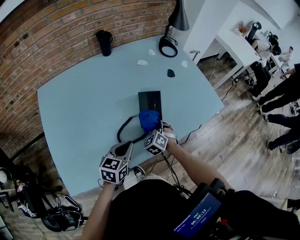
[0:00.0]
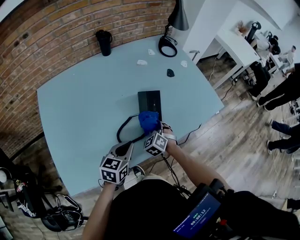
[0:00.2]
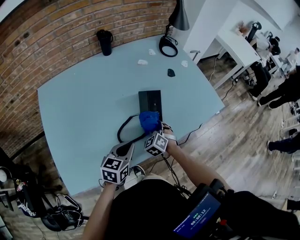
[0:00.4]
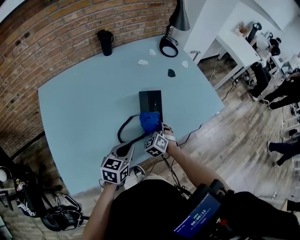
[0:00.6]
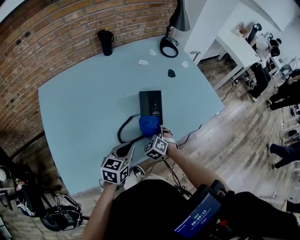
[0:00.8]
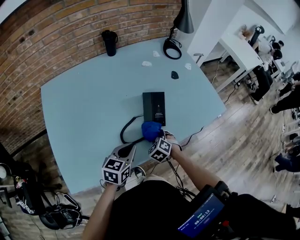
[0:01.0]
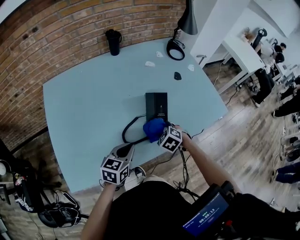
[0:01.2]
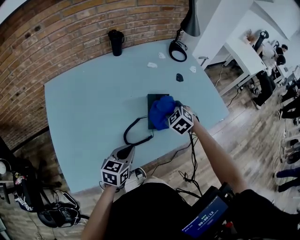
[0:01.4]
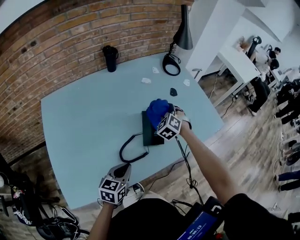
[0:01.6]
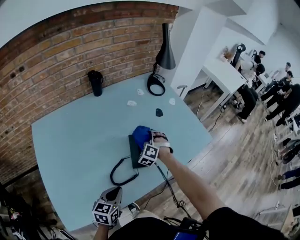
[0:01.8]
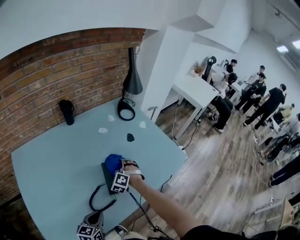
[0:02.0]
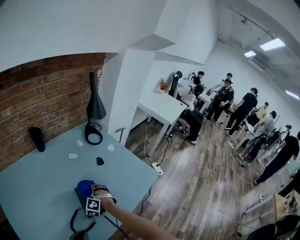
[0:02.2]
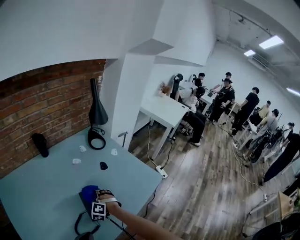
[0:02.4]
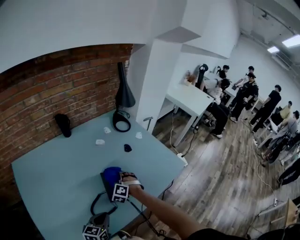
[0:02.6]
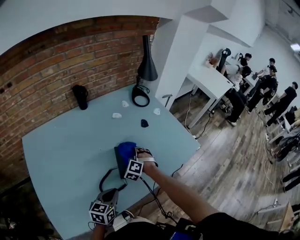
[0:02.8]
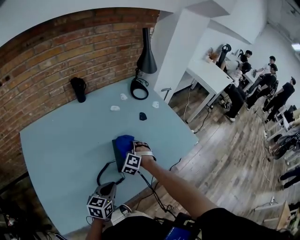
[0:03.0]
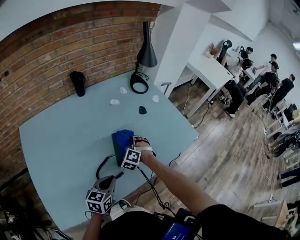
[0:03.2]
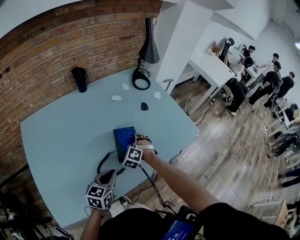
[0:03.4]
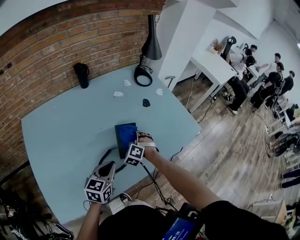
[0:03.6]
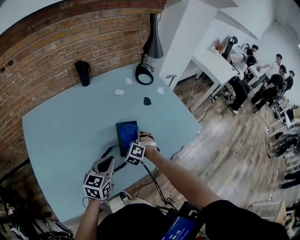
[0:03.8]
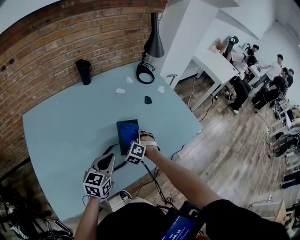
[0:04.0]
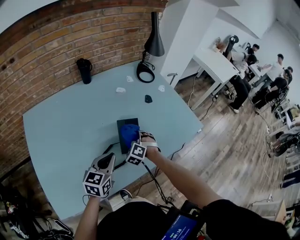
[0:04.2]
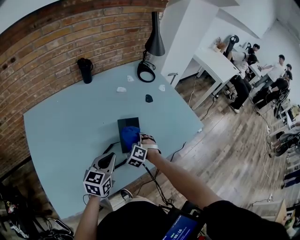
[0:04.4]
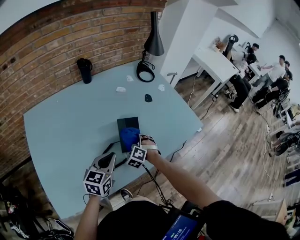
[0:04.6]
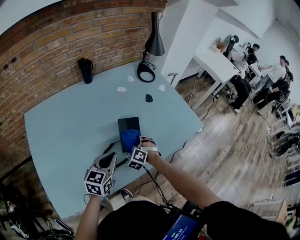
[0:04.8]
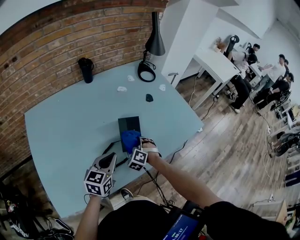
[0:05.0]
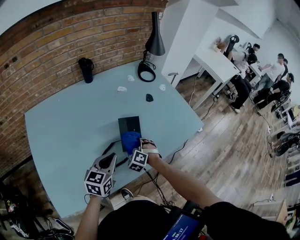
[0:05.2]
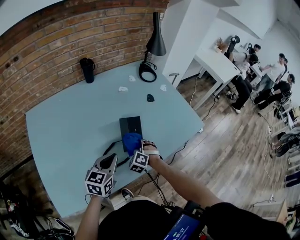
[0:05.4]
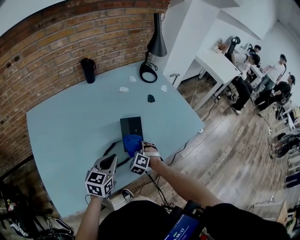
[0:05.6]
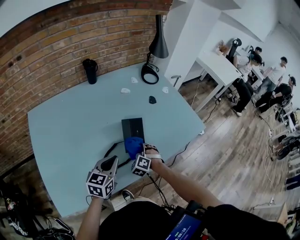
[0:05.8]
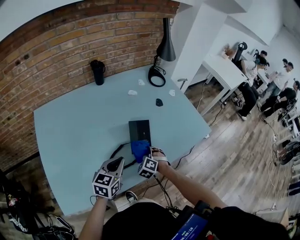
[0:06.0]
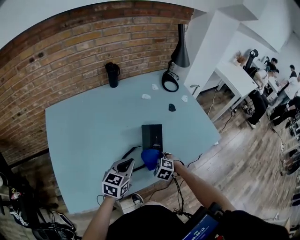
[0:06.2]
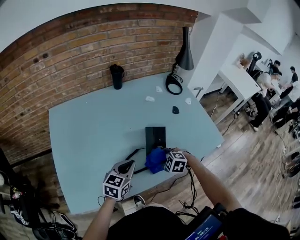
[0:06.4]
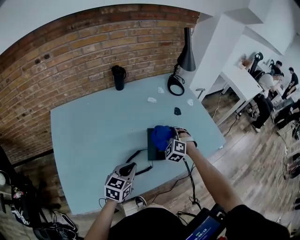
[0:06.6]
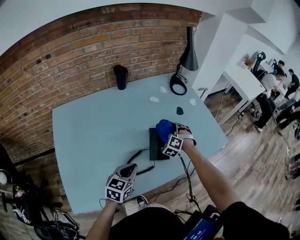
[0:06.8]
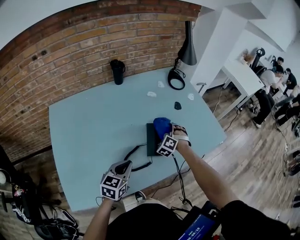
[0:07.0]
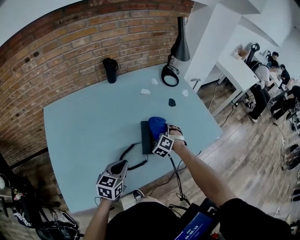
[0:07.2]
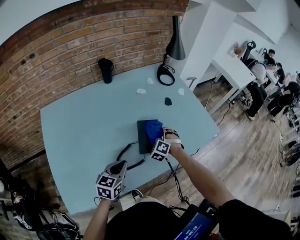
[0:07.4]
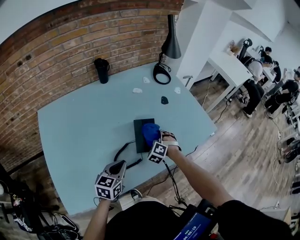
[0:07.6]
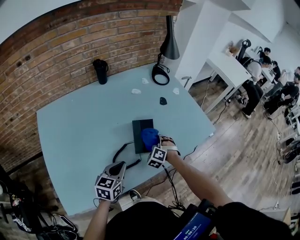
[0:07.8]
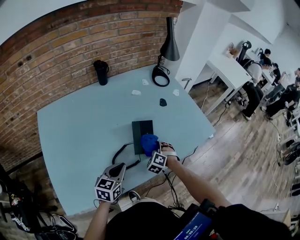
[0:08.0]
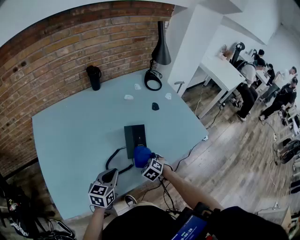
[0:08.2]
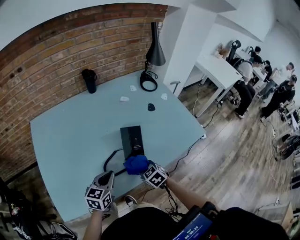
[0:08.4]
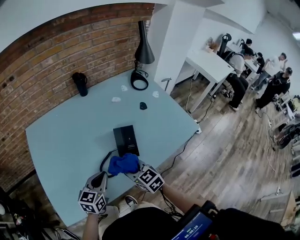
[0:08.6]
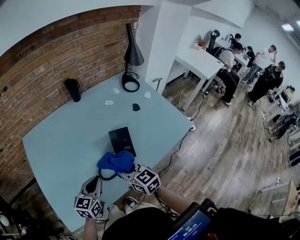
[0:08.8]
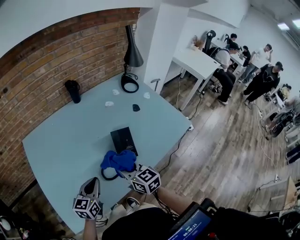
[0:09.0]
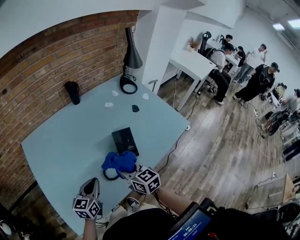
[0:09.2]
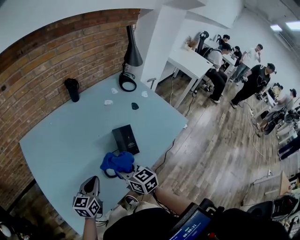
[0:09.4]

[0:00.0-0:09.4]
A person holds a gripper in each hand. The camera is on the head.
0:00.0 to 0:01.6: The right gripper travels forward and upward by roughly 15 cm.
0:01.6 to 0:03.2: The left gripper moves forward, roughly 5 cm; the right gripper moves downward, about 5 cm.
0:03.2 to 0:04.8: The left gripper goes about 5 cm upward. Meanwhile the right gripper shifts about 5 cm backward.
0:04.8 to 0:06.2: The right gripper shifts about 10 cm backward, and swivels about 30 degrees.
0:06.2 to 0:07.8: The right gripper travels upward and back again, some 10 cm each way, and turns by approximately 30 degrees.
0:07.8 to 0:09.4: The left gripper changes place by about 10 cm, while the right gripper moves about 25 cm, and rolls clockwise, seen from behind, by roughly 70 degrees.

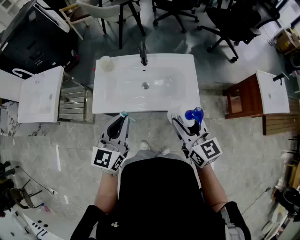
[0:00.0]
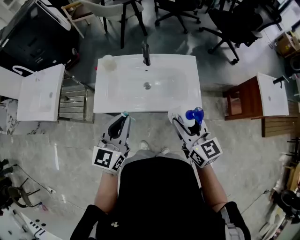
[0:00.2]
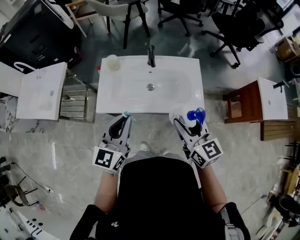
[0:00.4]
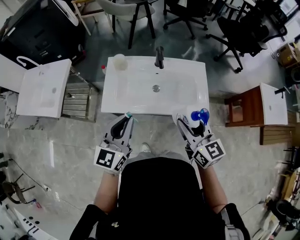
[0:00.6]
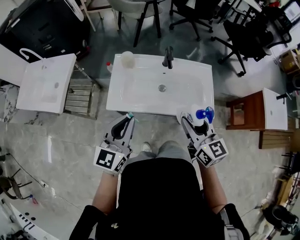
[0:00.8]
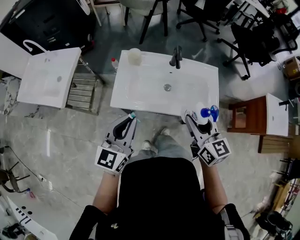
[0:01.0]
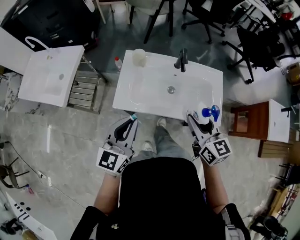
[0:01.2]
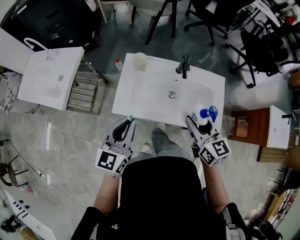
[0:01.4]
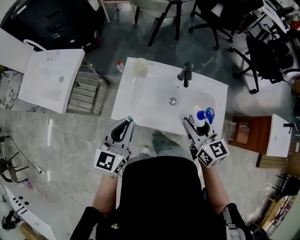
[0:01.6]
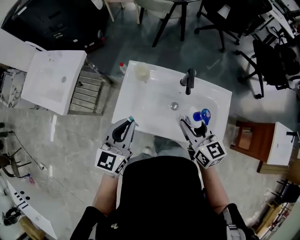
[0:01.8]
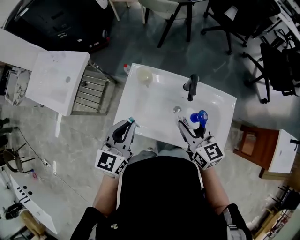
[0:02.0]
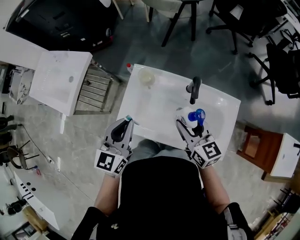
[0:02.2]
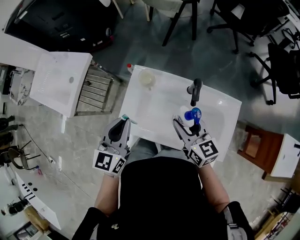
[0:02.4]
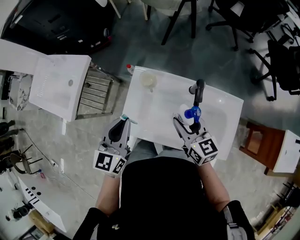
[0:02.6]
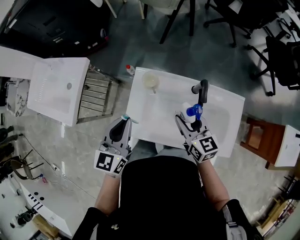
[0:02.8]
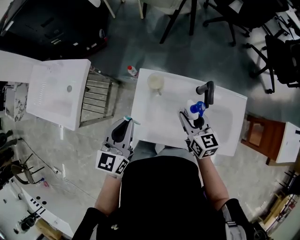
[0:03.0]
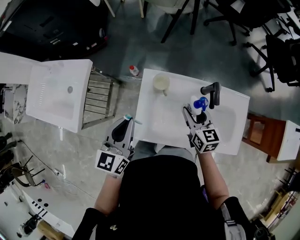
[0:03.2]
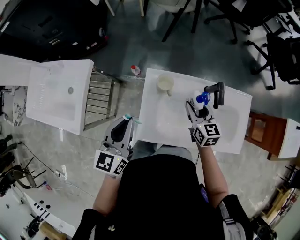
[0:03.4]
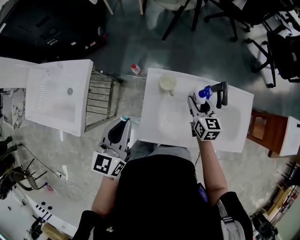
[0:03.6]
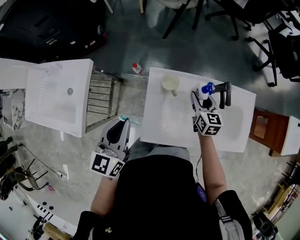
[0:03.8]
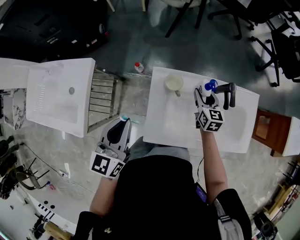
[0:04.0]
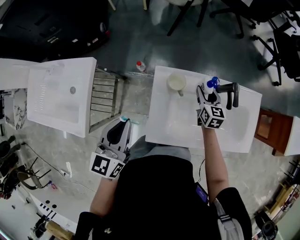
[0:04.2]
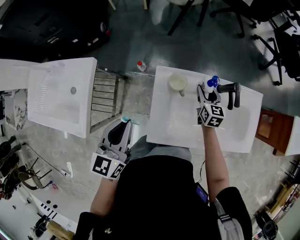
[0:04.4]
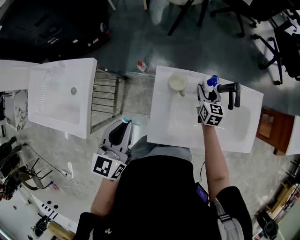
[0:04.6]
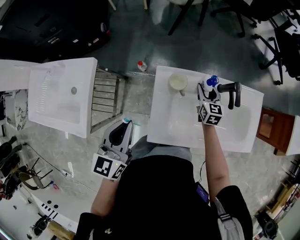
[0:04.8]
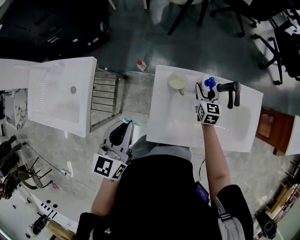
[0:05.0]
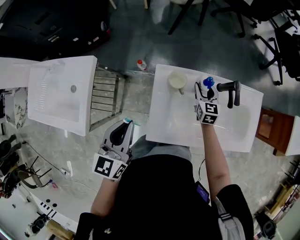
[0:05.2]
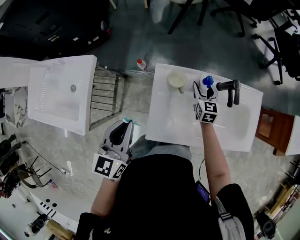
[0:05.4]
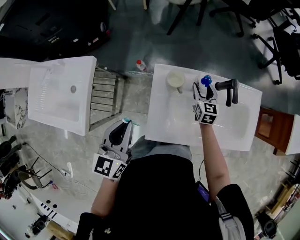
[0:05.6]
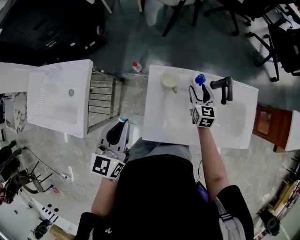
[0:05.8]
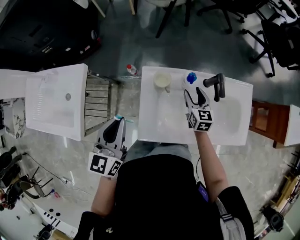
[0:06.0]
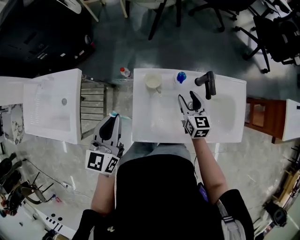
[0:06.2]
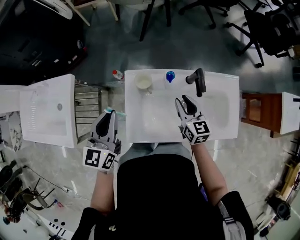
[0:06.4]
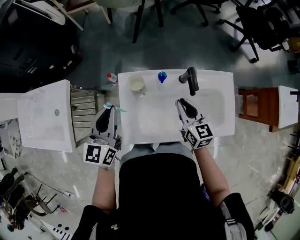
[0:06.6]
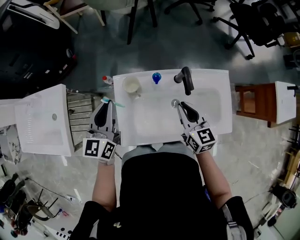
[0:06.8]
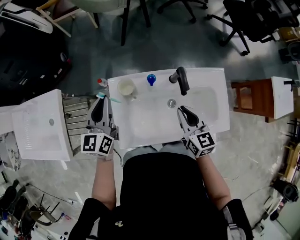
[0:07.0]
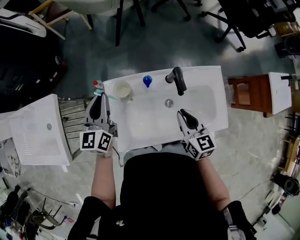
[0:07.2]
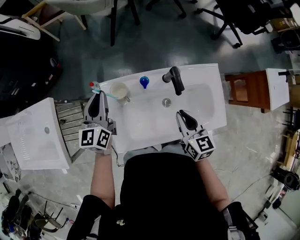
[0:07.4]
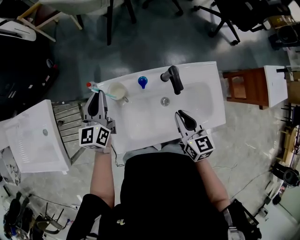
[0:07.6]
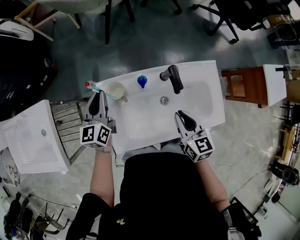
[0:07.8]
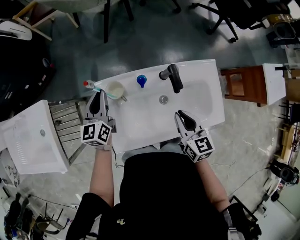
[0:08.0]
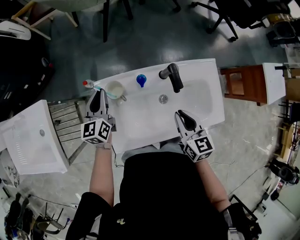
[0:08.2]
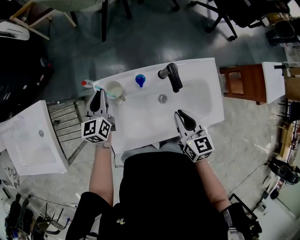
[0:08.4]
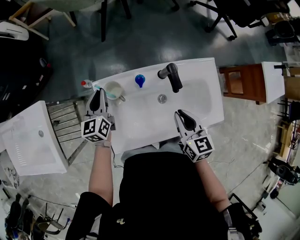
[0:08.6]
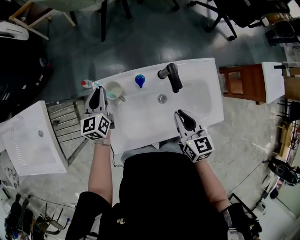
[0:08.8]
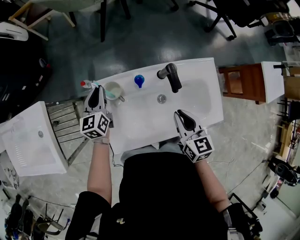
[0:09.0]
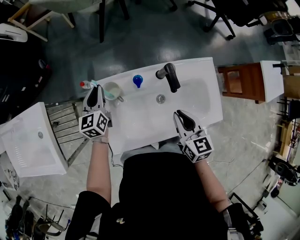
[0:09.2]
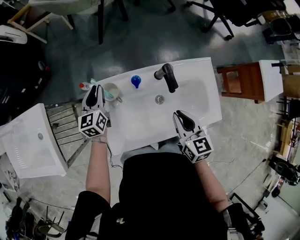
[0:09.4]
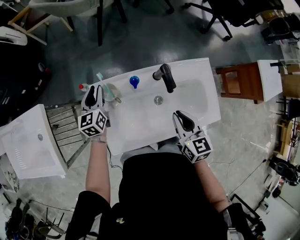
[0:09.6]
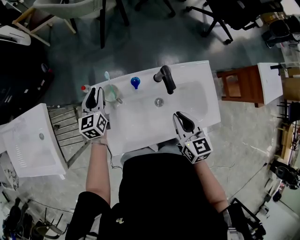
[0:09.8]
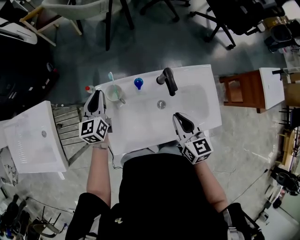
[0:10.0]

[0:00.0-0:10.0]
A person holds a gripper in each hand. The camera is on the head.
0:00.0 to 0:01.4: The left gripper travels to the left by roughly 15 cm. The right gripper moves forward and to the left, about 15 cm.
0:01.4 to 0:02.8: The left gripper is displaced forward by approximately 15 cm; the right gripper shifts approximately 20 cm forward and downward.
0:02.8 to 0:04.2: The right gripper goes about 20 cm downward and forward, and rotates approximately 30 degrees. Meanwhile the left gripper is displaced to the left by approximately 15 cm.
0:04.2 to 0:05.8: There are only small adjustments of the grippers.
0:05.8 to 0:07.2: The right gripper shifts approximately 20 cm upward, backward and to the right, and closes its fingers. Meanwhile the left gripper is displaced forward and to the right by roughly 20 cm.
0:07.2 to 0:08.6: The left gripper is displaced downward by approximately 10 cm.
0:08.6 to 0:10.0: There are only small adjustments of the grippers.

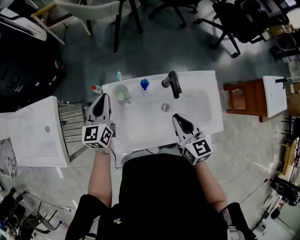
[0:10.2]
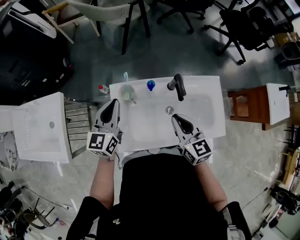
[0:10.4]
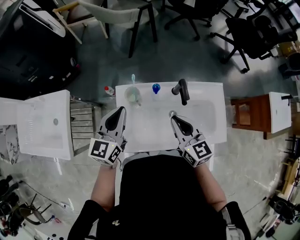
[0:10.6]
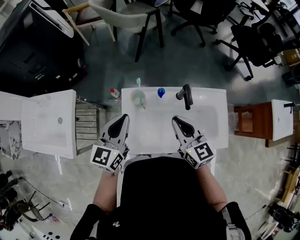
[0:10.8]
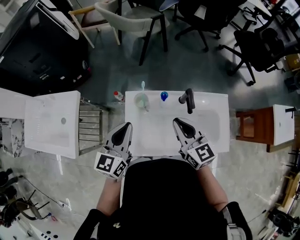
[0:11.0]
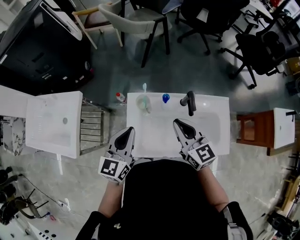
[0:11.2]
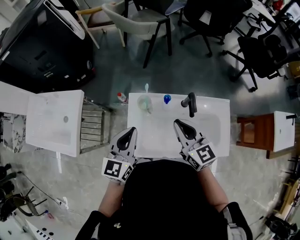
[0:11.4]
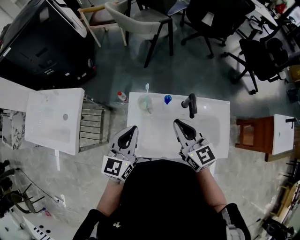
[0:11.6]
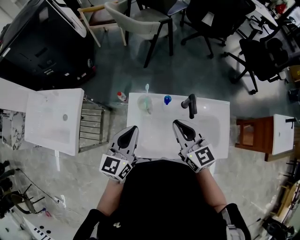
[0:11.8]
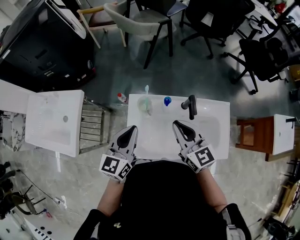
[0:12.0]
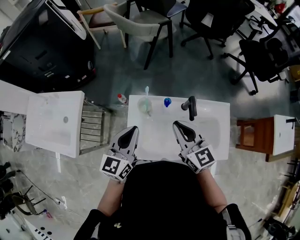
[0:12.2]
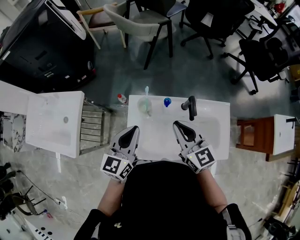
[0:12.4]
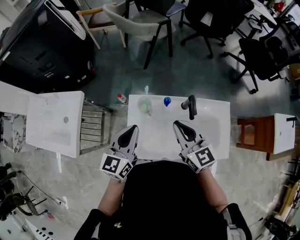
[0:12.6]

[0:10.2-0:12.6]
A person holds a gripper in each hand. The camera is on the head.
0:10.2 to 0:11.4: The left gripper moves backward and upward, some 15 cm. The right gripper is displaced upward and to the left by roughly 10 cm, and rotates about 20 degrees.
0:11.4 to 0:12.6: The grippers stay close to where they were, moving slightly.

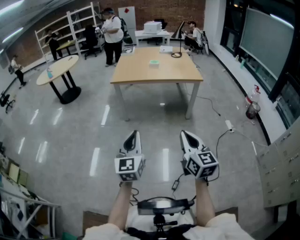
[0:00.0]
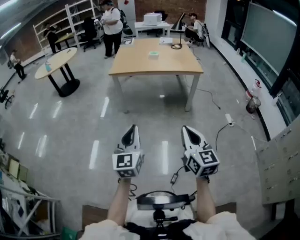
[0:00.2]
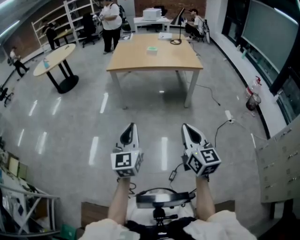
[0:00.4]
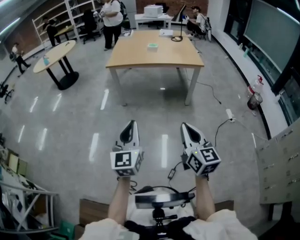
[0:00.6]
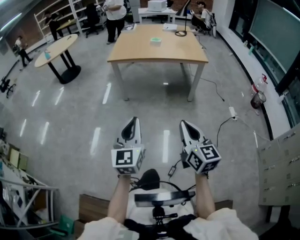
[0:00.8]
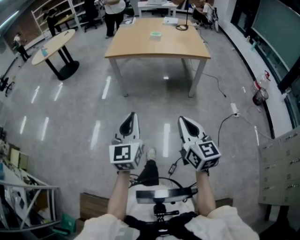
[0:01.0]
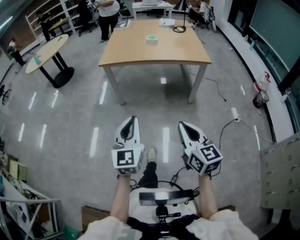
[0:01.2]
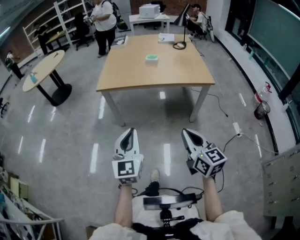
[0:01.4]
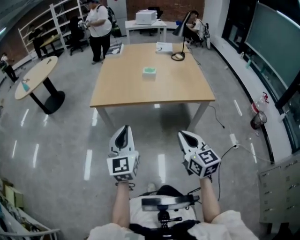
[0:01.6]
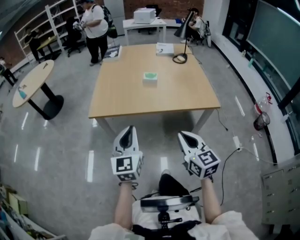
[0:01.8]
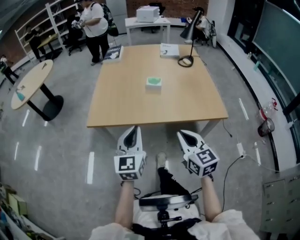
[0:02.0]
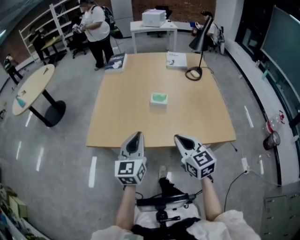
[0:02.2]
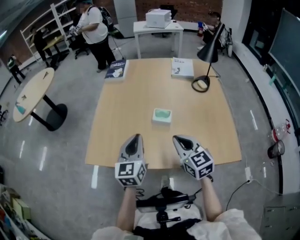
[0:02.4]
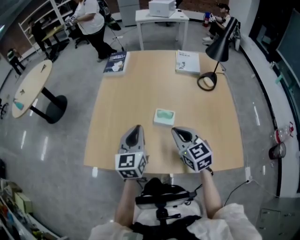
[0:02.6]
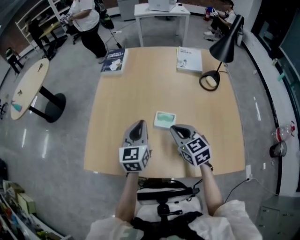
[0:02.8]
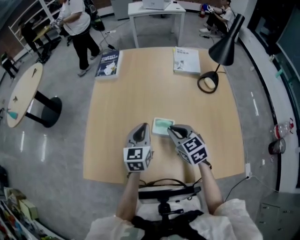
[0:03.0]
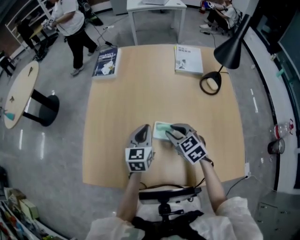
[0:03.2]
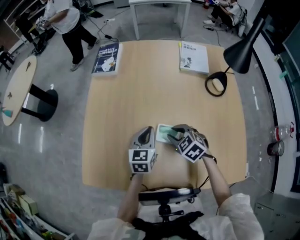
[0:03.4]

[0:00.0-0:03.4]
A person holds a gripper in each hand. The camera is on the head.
0:00.0 to 0:01.6: Both grippers are carried forward, about 50 cm.
0:01.6 to 0:03.4: Both grippers are carried forward, roughly 70 cm. The right gripper angles its fingers downward, by about 40 degrees, and opens up. Meanwhile the left gripper rotates some 30 degrees.
